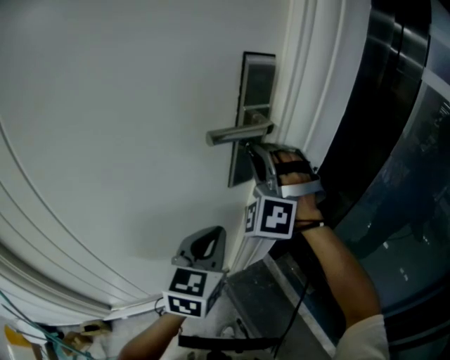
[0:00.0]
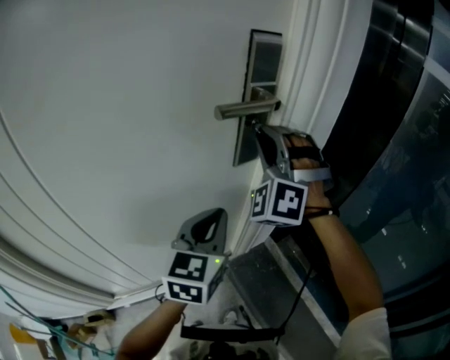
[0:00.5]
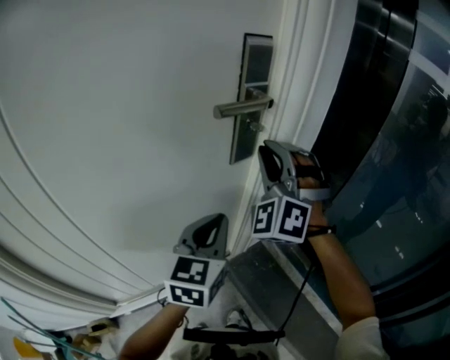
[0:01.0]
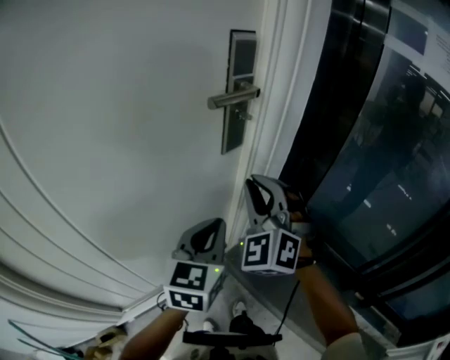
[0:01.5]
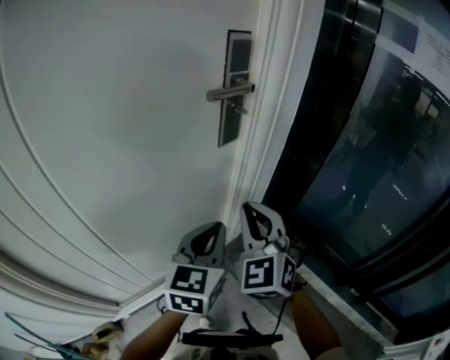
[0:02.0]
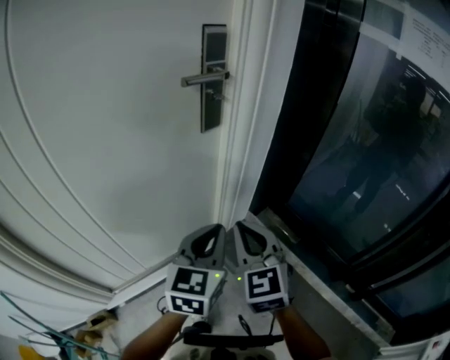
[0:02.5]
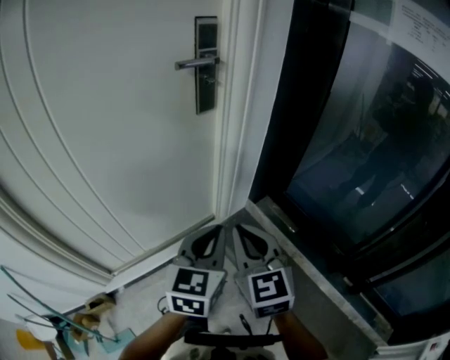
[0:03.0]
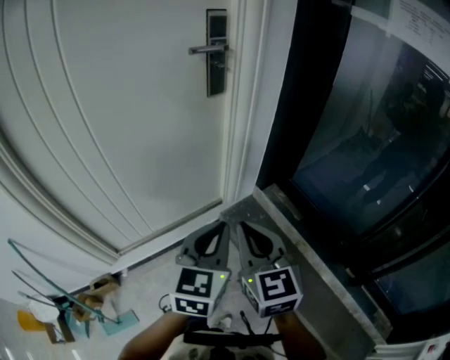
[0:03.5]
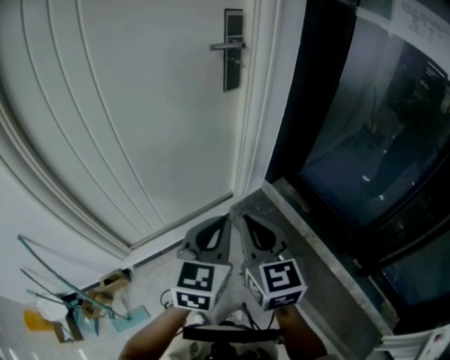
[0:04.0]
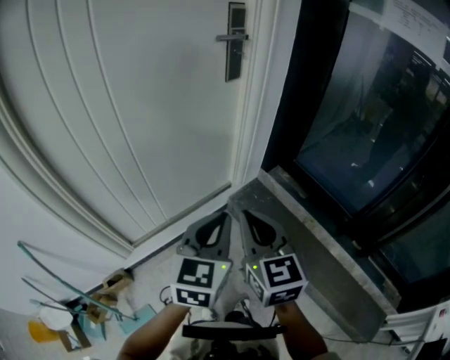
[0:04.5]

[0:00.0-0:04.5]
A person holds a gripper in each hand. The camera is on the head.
0:00.0 to 0:02.0: The left gripper is displaced backward by approximately 10 cm. The right gripper moves backward and downward, some 25 cm, and twists some 50 degrees clockwise, seen from behind.
0:02.0 to 0:04.5: The two grippers go roughly 30 cm backward. The right gripper changes its angle by some 40 degrees.

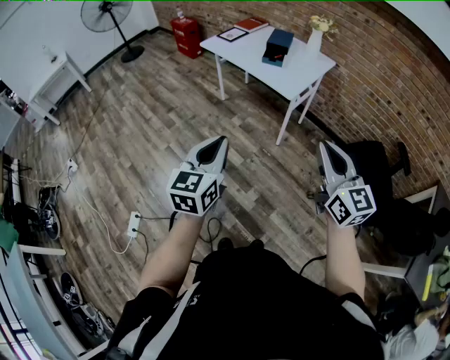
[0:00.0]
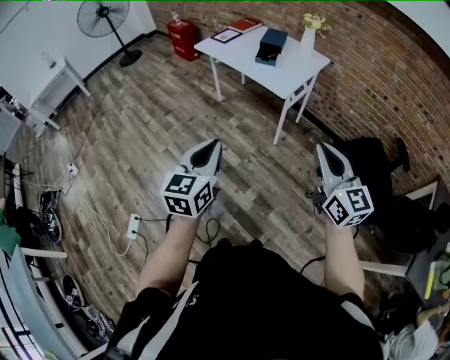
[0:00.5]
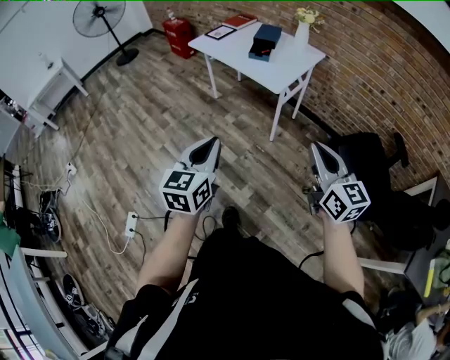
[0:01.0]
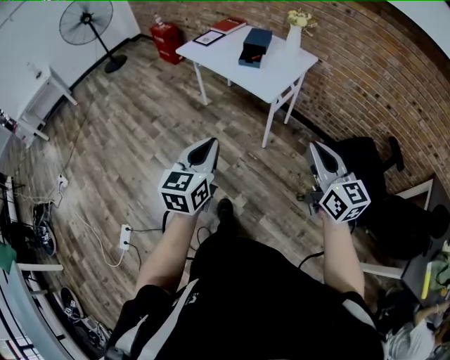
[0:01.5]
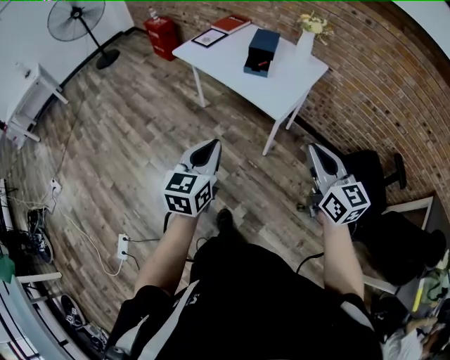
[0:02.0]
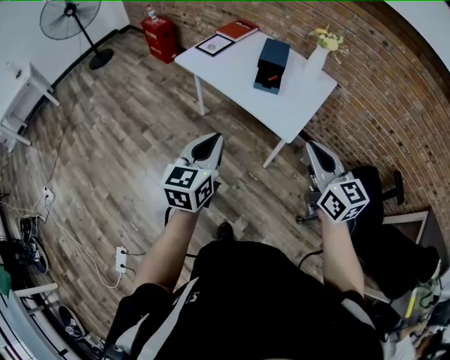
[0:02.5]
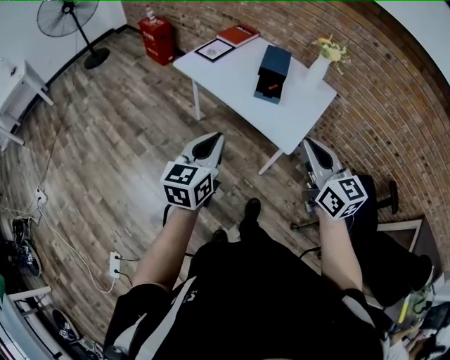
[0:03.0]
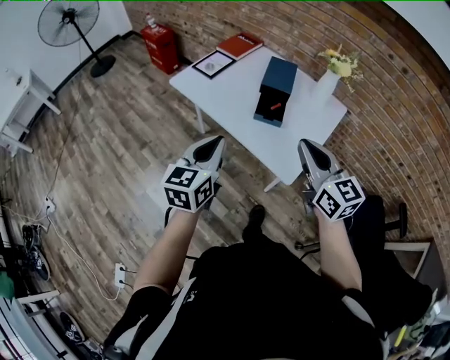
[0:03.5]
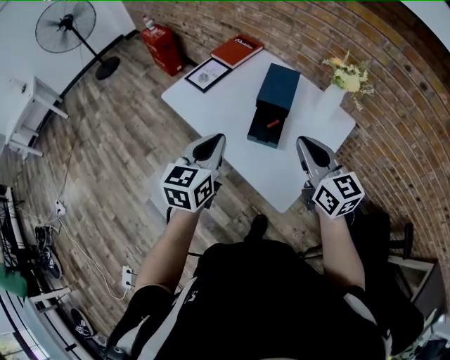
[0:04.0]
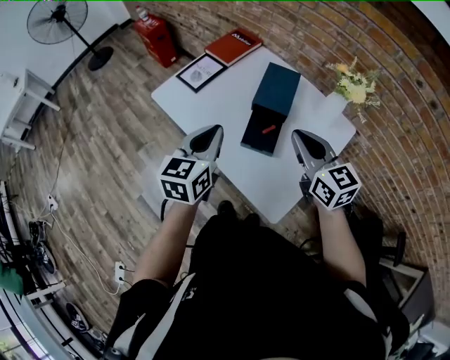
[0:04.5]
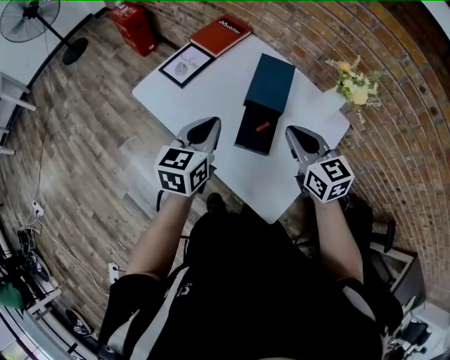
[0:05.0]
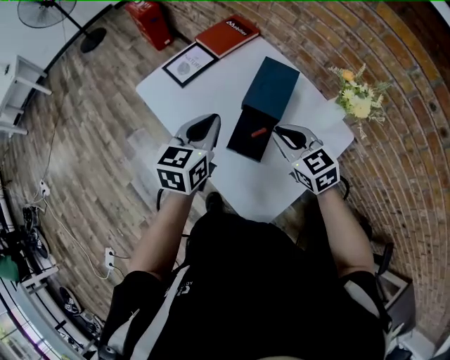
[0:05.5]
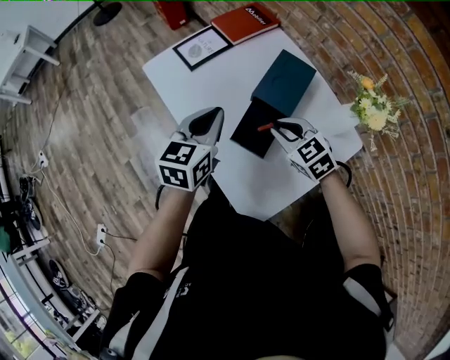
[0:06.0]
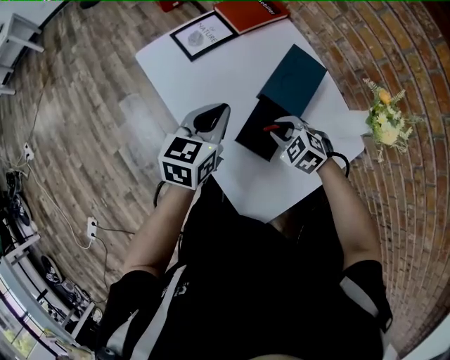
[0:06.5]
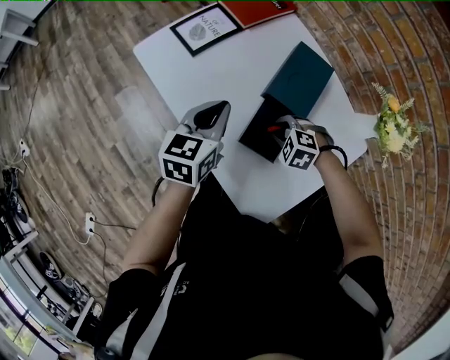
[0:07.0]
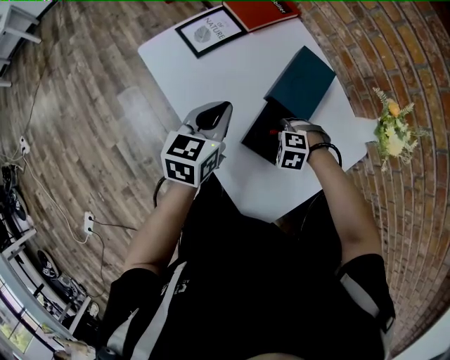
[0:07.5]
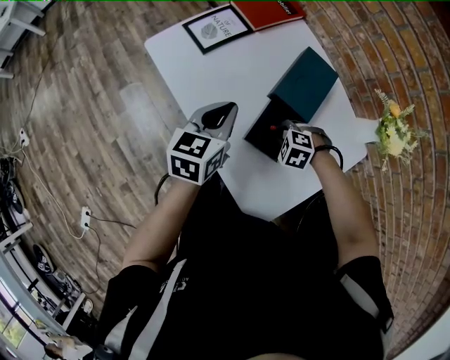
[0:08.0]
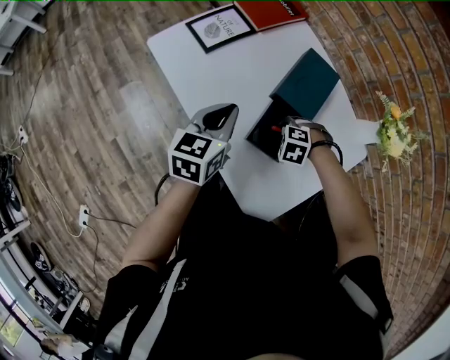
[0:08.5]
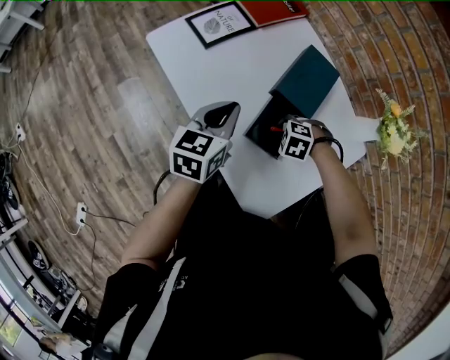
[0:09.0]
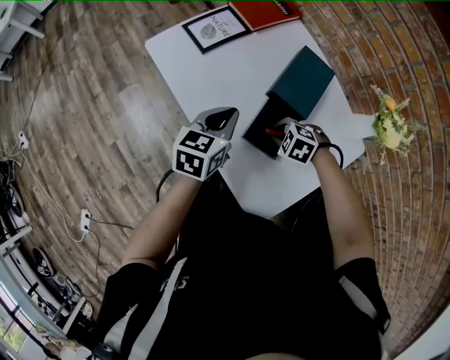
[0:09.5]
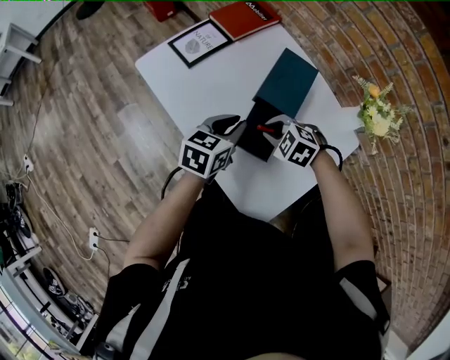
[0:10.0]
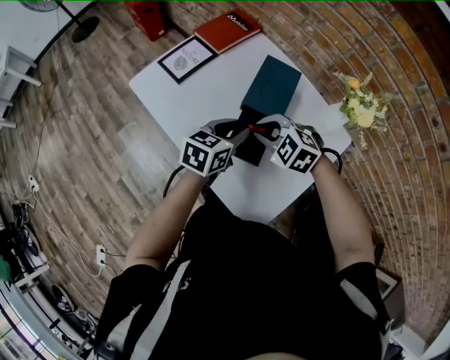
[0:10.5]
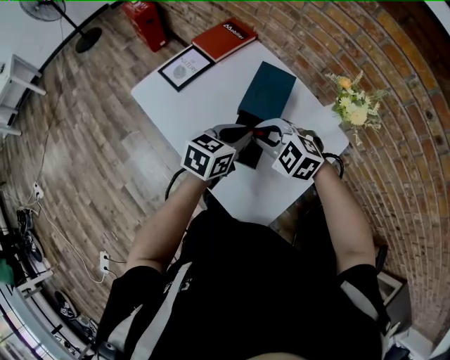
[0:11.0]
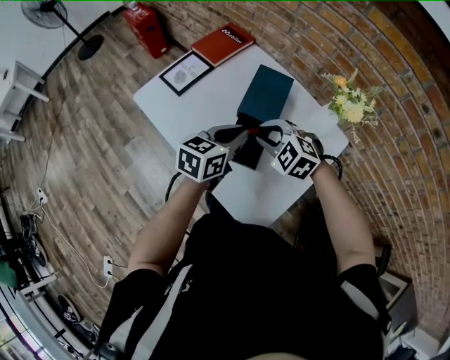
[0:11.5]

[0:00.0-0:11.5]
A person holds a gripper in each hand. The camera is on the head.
0:00.0 to 0:02.0: Both grippers move forward, some 20 cm.
0:02.0 to 0:04.0: Both grippers are carried forward, some 50 cm.
0:04.0 to 0:06.0: The right gripper moves downward and forward, roughly 25 cm, and angles its fingers downward, by approximately 40 degrees. The left gripper moves forward and downward, roughly 15 cm.
0:06.0 to 0:07.5: The left gripper travels downward by roughly 5 cm. The right gripper moves downward, approximately 15 cm, and tilts its fingers roughly 40 degrees downward.
0:07.5 to 0:09.5: The grippers make only small movements.
0:09.5 to 0:11.5: The left gripper shifts by some 15 cm, and opens, then closes again, while the right gripper shifts approximately 15 cm upward, and swivels approximately 30 degrees.

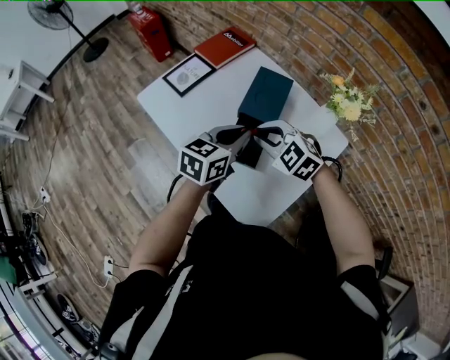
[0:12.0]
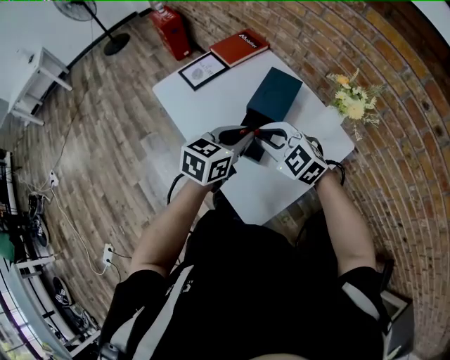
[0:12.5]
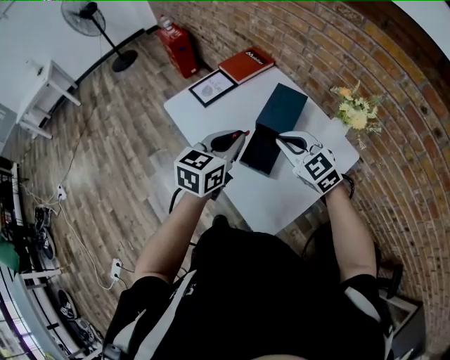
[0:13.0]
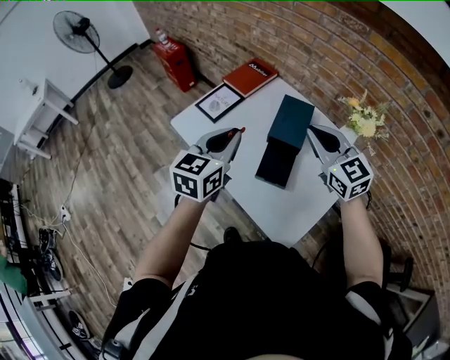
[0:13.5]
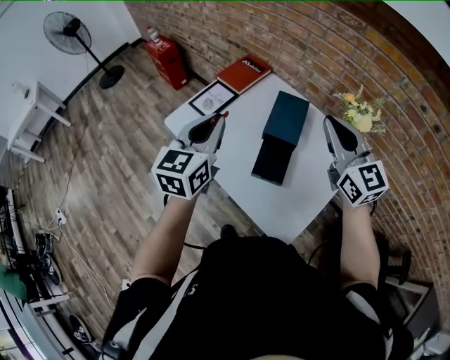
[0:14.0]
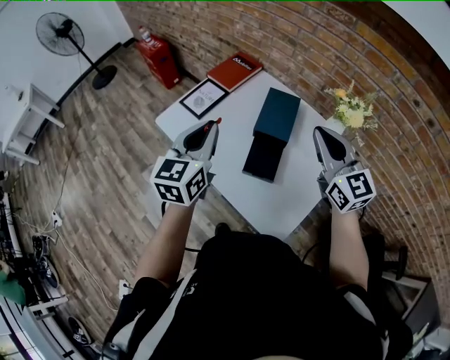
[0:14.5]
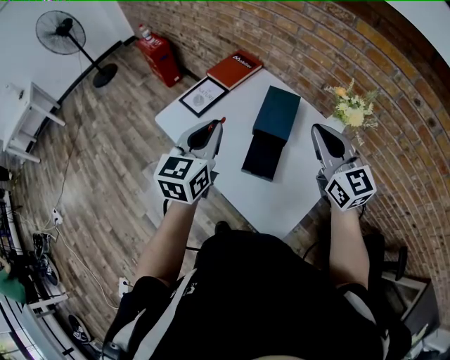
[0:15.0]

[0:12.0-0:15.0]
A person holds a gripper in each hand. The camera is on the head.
0:12.0 to 0:13.5: The left gripper goes some 15 cm to the left and upward. Meanwhile the right gripper moves upward, approximately 15 cm, and tilts its fingers roughly 30 degrees upward.
0:13.5 to 0:15.0: The right gripper moves approximately 5 cm.

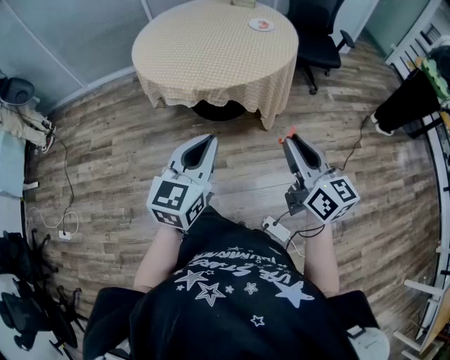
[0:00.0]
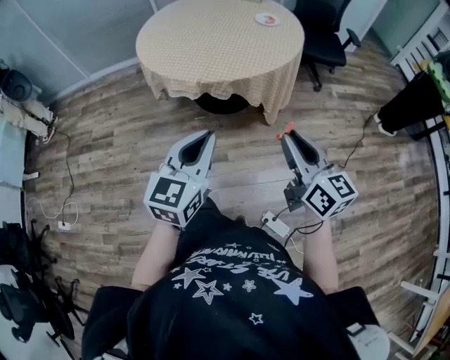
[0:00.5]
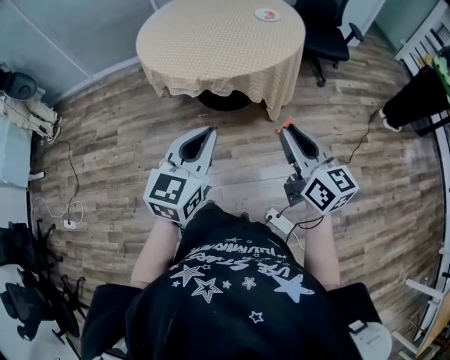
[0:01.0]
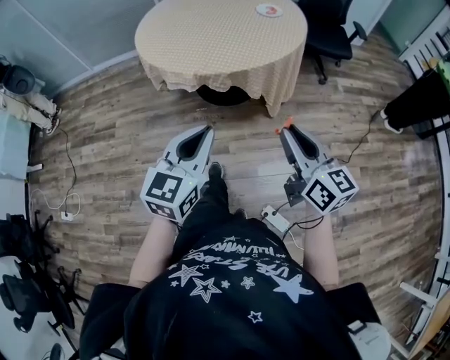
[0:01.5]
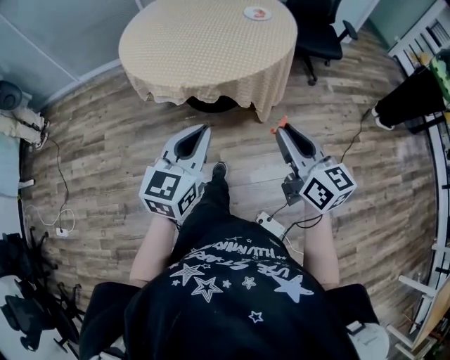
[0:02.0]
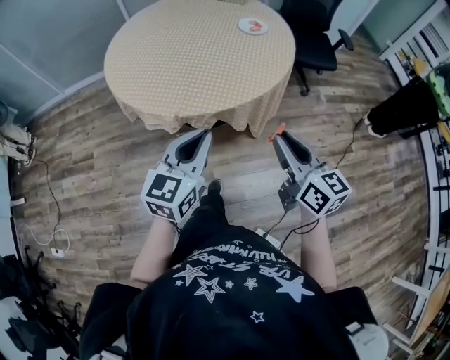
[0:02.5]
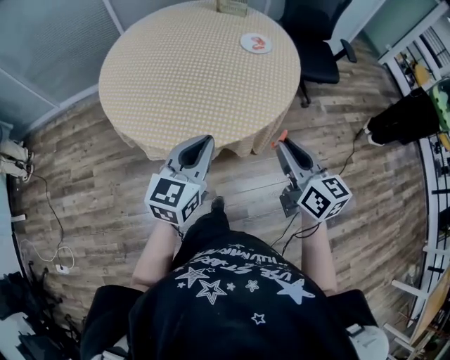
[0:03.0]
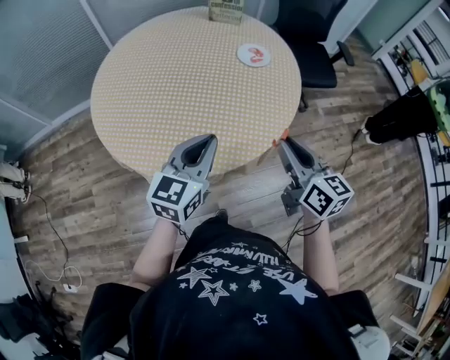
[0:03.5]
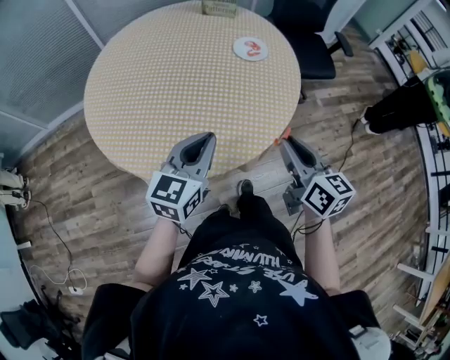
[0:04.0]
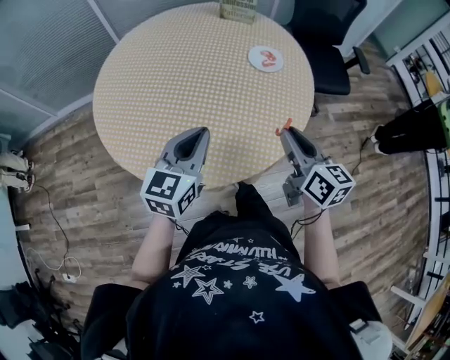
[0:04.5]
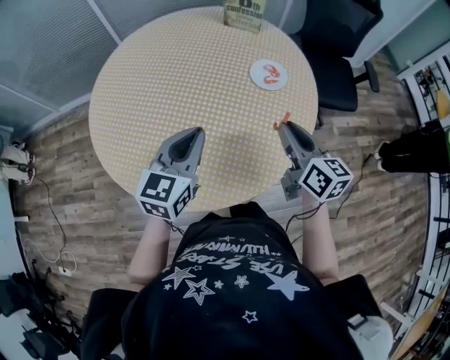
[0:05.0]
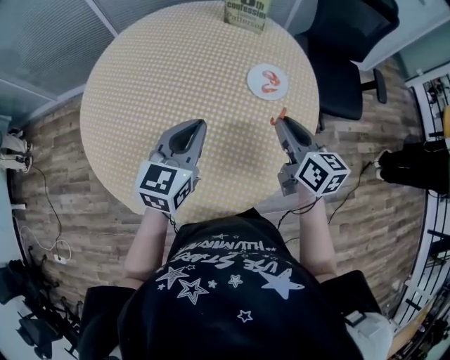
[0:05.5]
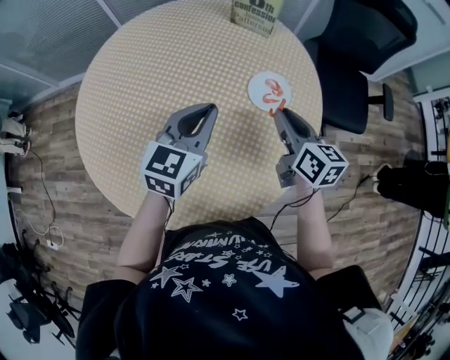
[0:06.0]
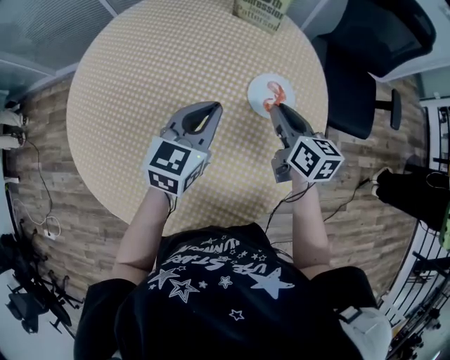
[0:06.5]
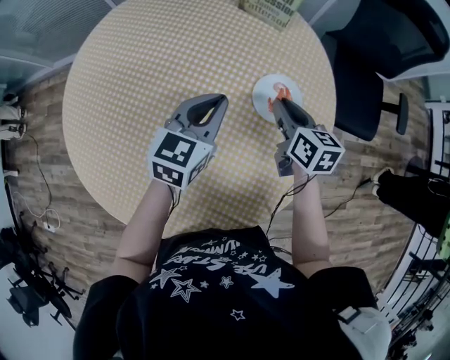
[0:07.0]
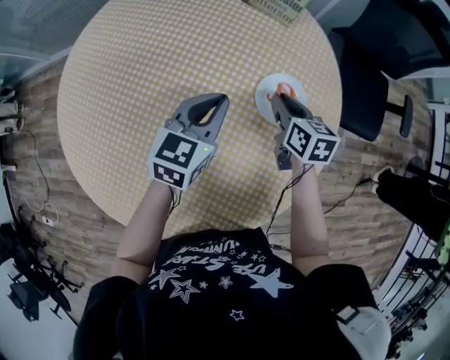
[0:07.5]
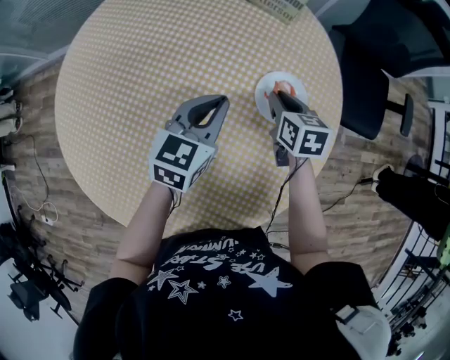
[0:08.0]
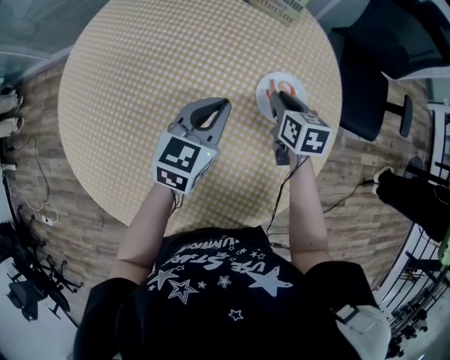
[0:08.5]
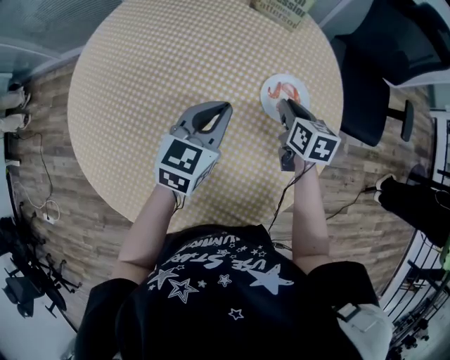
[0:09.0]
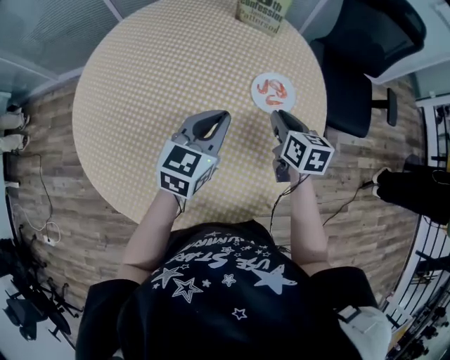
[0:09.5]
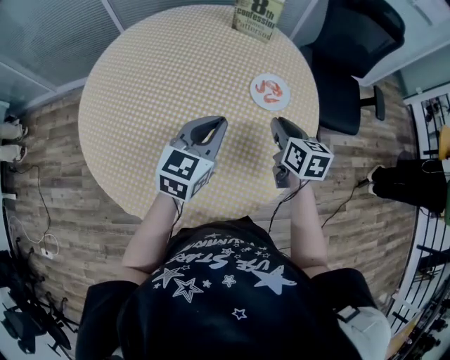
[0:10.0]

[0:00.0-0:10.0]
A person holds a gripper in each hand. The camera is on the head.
0:00.0 to 0:02.0: The grippers both shift forward by about 5 cm.
0:02.0 to 0:04.0: Both grippers travel together forward, approximately 35 cm.
0:04.0 to 0:06.0: The grippers both shift forward by approximately 35 cm.
0:06.0 to 0:08.0: Both grippers travel together downward and forward, roughly 15 cm. The right gripper rotates about 30 degrees.
0:08.0 to 0:10.0: The two grippers go about 20 cm backward and upward.
